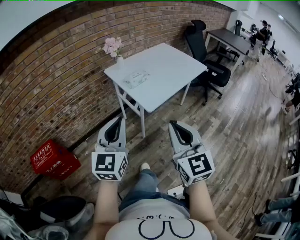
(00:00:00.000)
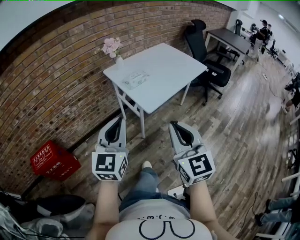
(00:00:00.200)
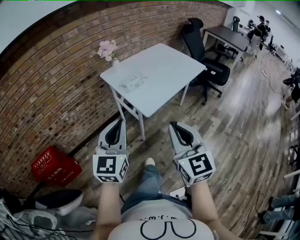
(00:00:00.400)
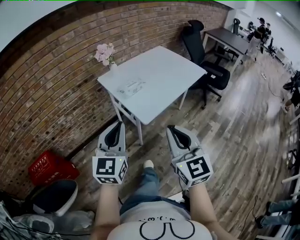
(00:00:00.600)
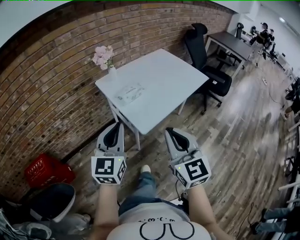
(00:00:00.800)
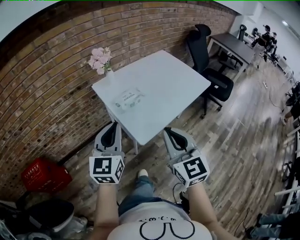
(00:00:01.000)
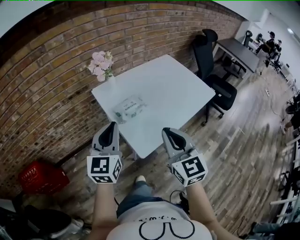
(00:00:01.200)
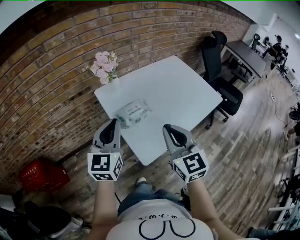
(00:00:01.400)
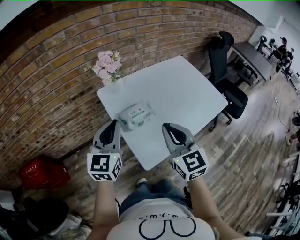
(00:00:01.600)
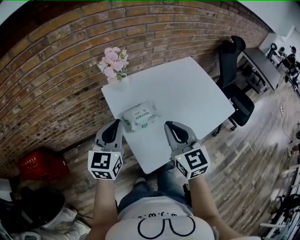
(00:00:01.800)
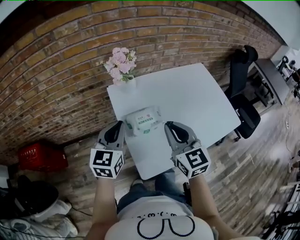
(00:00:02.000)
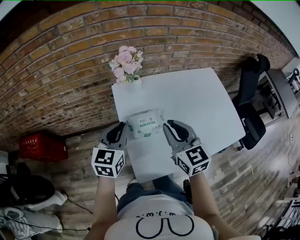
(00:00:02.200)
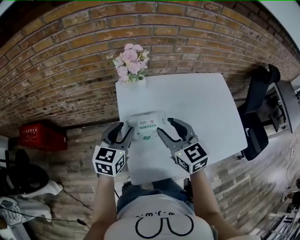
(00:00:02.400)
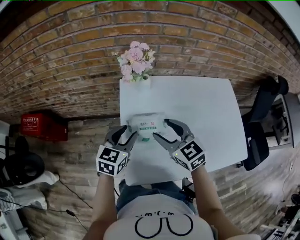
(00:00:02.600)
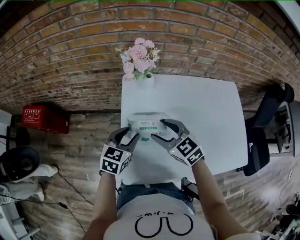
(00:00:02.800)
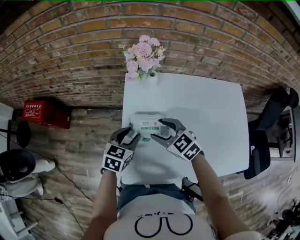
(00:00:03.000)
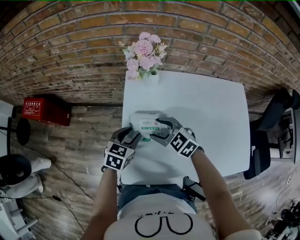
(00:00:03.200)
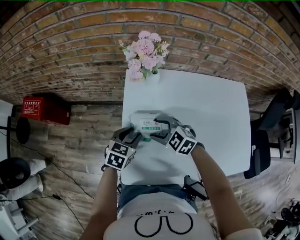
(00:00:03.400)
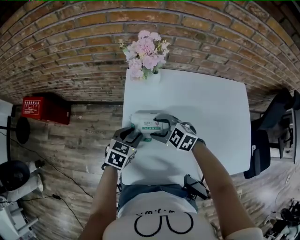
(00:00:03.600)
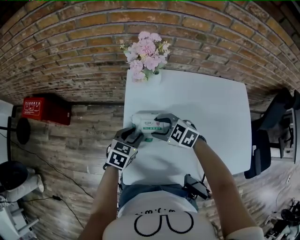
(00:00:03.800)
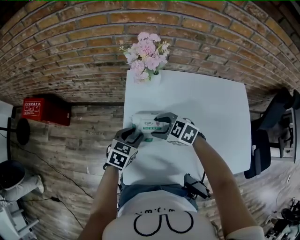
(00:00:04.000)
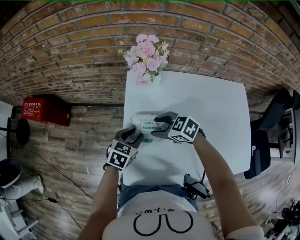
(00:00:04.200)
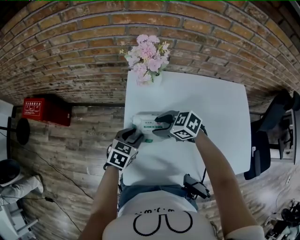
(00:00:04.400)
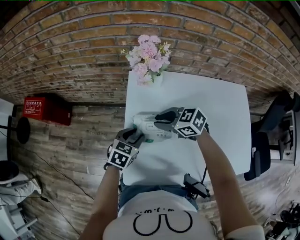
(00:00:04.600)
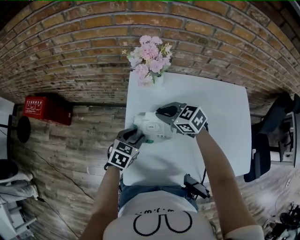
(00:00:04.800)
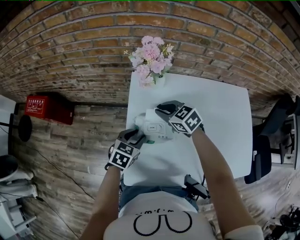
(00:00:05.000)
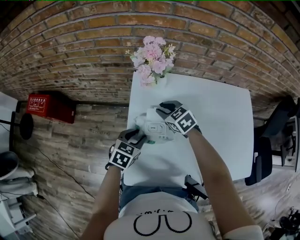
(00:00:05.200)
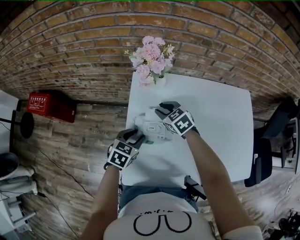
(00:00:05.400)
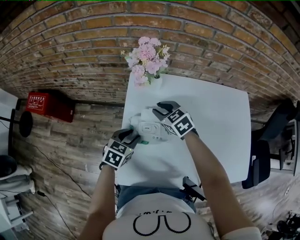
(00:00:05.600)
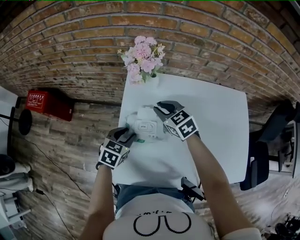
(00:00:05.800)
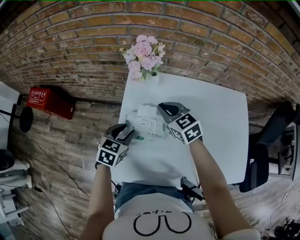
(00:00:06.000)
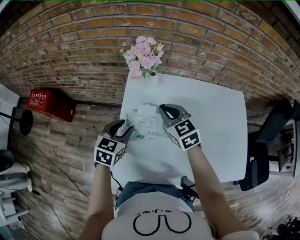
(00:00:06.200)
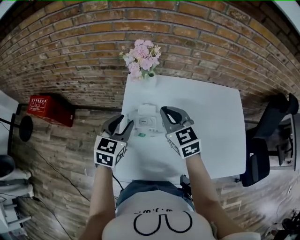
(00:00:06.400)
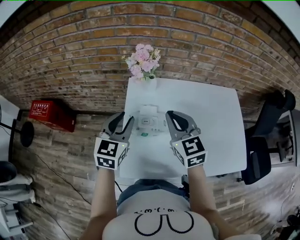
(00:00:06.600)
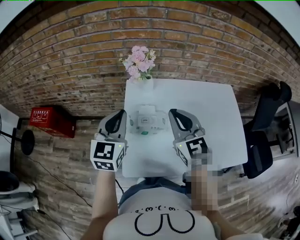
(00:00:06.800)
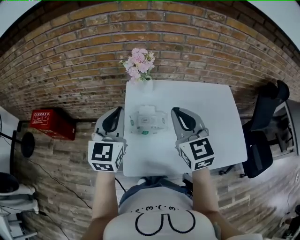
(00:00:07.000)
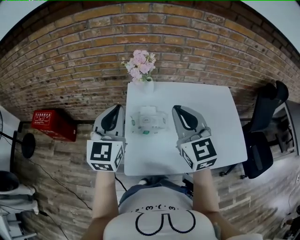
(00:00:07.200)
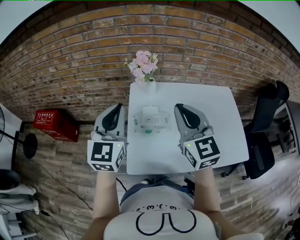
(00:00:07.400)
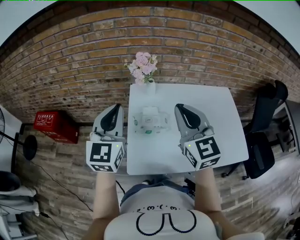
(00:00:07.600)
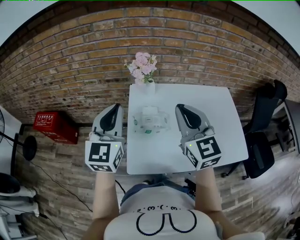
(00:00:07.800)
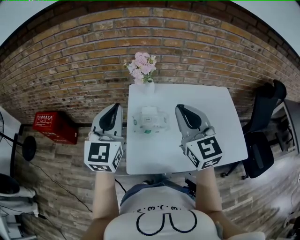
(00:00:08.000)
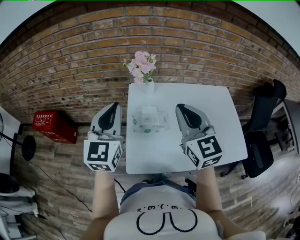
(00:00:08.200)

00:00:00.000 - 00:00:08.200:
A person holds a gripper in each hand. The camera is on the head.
00:00:00.000 - 00:00:01.600: Both grippers travel together forward, about 40 cm.
00:00:01.600 - 00:00:03.200: The two grippers go some 20 cm downward. The right gripper tips its fingers downward by approximately 30 degrees, and opens up, while the left gripper tips its fingers downward by approximately 40 degrees, and opens.
00:00:03.200 - 00:00:05.000: The right gripper changes place by roughly 10 cm, and closes up.
00:00:05.000 - 00:00:06.600: The left gripper shifts some 20 cm upward, and swivels approximately 30 degrees; the right gripper shifts some 20 cm upward and backward, and rotates some 40 degrees.
00:00:06.600 - 00:00:08.200: Both grippers move upward and backward, some 15 cm. The left gripper rotates roughly 20 degrees, and closes its fingers.

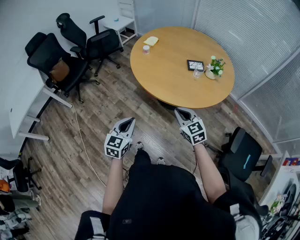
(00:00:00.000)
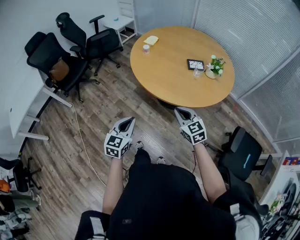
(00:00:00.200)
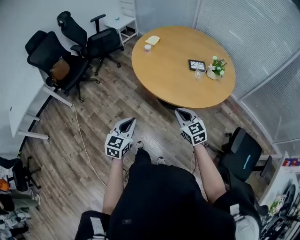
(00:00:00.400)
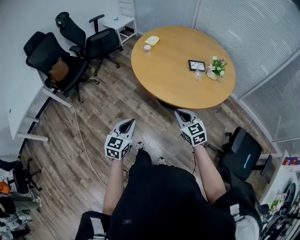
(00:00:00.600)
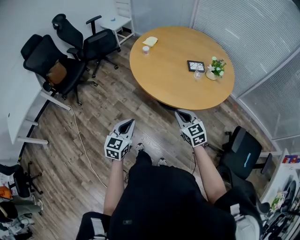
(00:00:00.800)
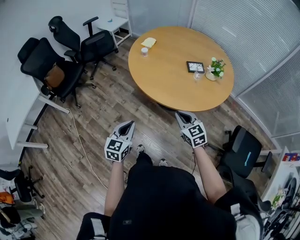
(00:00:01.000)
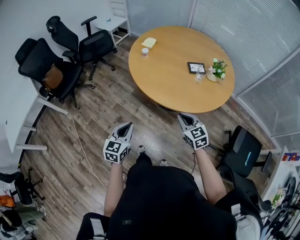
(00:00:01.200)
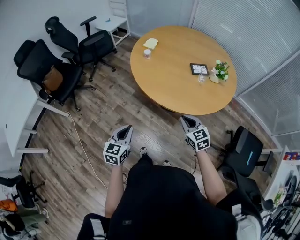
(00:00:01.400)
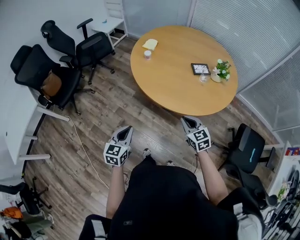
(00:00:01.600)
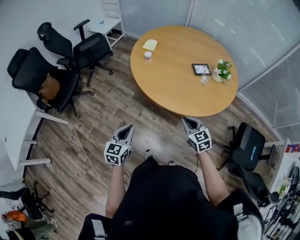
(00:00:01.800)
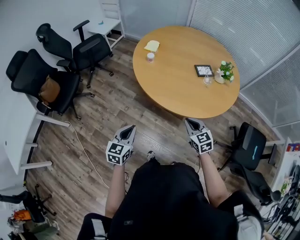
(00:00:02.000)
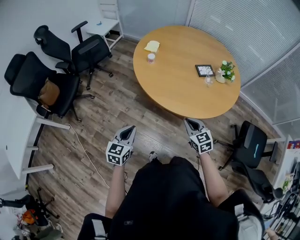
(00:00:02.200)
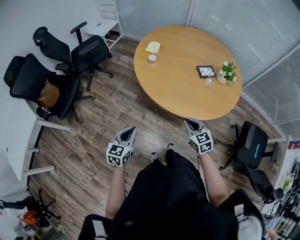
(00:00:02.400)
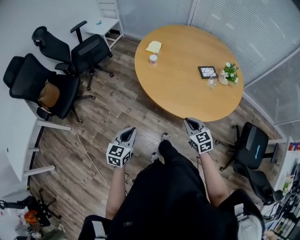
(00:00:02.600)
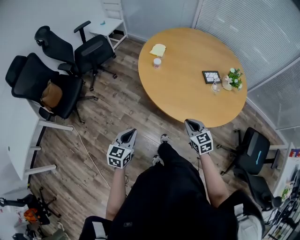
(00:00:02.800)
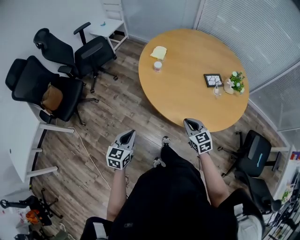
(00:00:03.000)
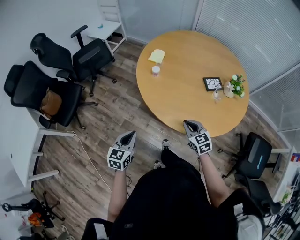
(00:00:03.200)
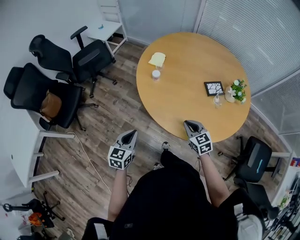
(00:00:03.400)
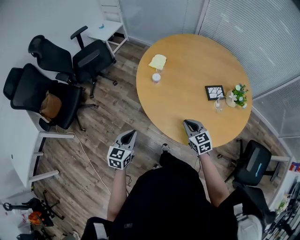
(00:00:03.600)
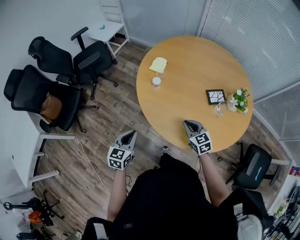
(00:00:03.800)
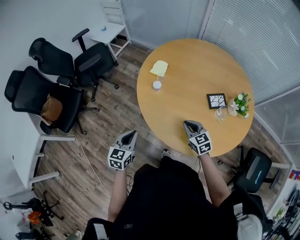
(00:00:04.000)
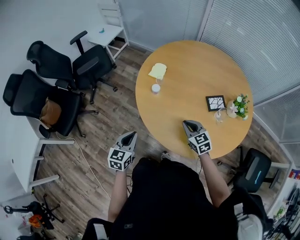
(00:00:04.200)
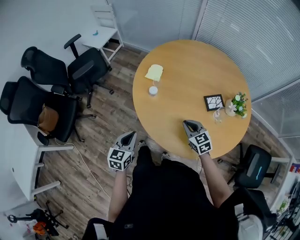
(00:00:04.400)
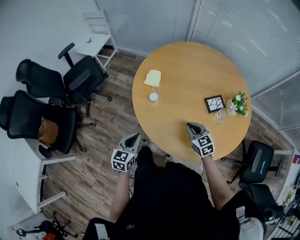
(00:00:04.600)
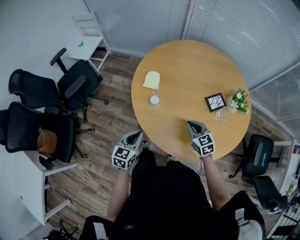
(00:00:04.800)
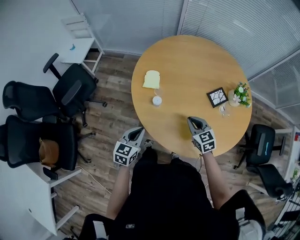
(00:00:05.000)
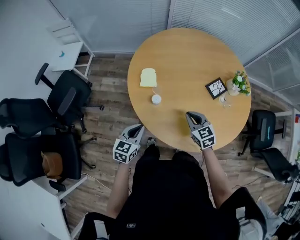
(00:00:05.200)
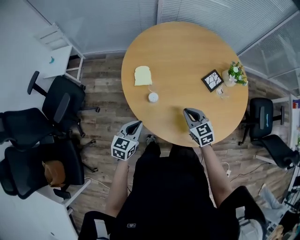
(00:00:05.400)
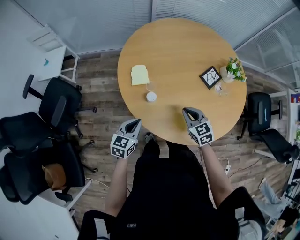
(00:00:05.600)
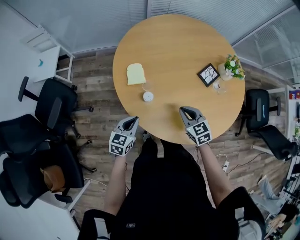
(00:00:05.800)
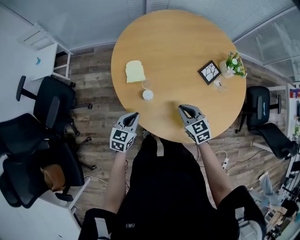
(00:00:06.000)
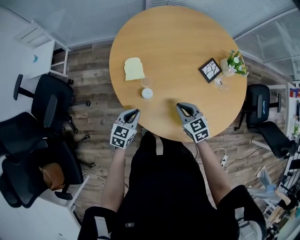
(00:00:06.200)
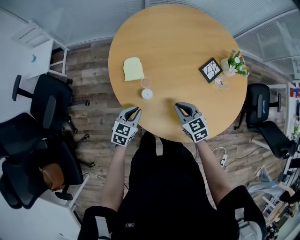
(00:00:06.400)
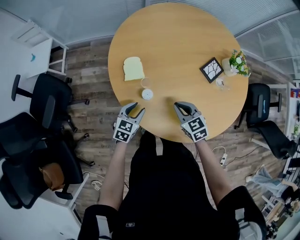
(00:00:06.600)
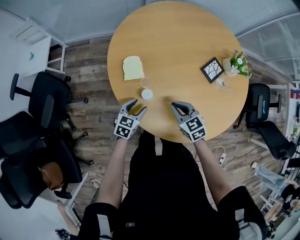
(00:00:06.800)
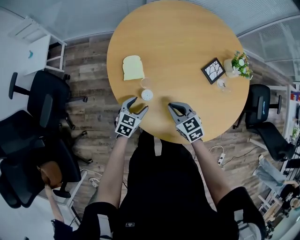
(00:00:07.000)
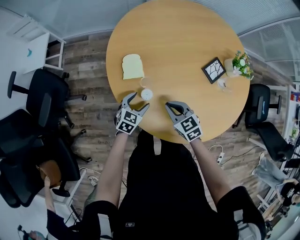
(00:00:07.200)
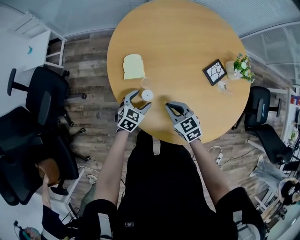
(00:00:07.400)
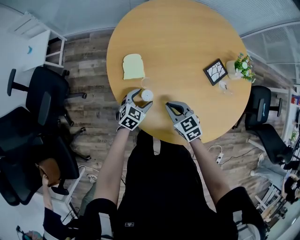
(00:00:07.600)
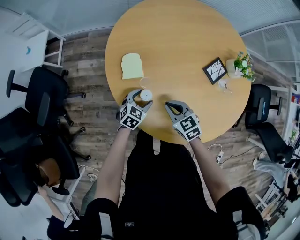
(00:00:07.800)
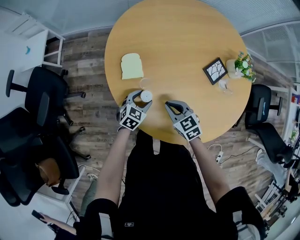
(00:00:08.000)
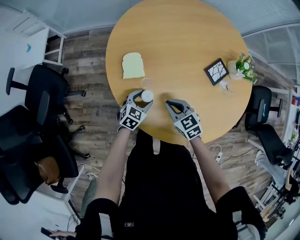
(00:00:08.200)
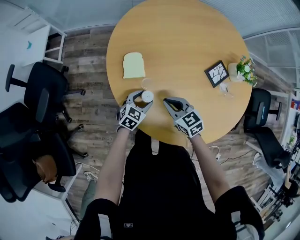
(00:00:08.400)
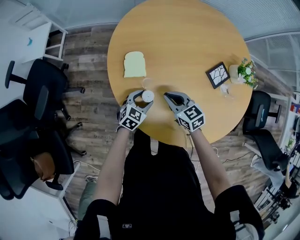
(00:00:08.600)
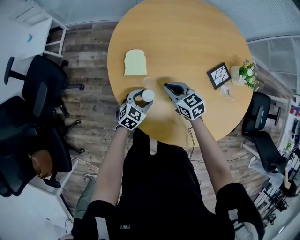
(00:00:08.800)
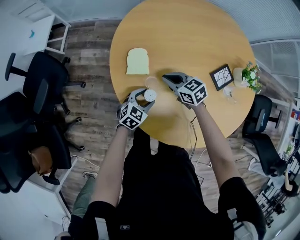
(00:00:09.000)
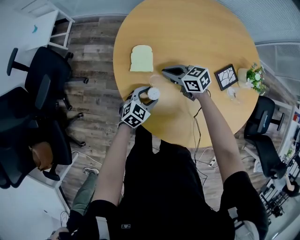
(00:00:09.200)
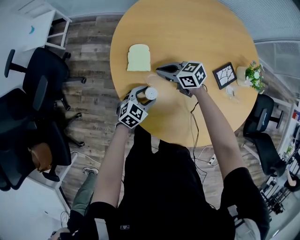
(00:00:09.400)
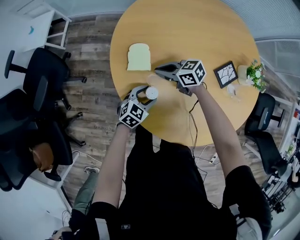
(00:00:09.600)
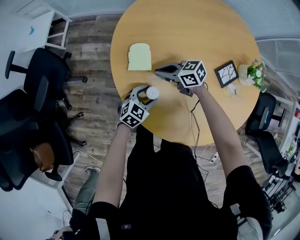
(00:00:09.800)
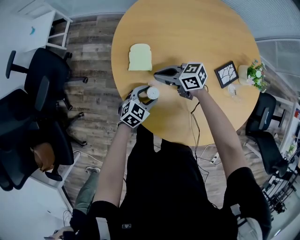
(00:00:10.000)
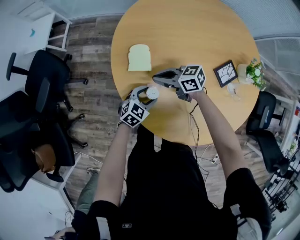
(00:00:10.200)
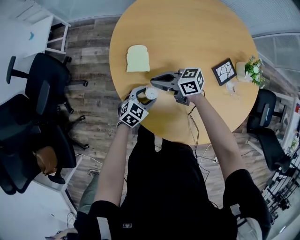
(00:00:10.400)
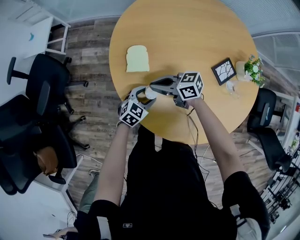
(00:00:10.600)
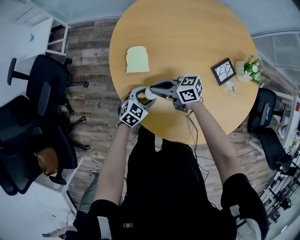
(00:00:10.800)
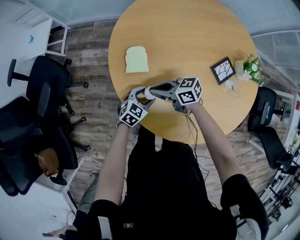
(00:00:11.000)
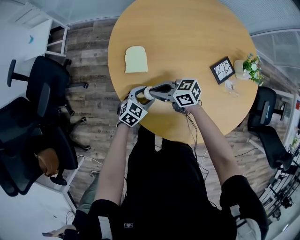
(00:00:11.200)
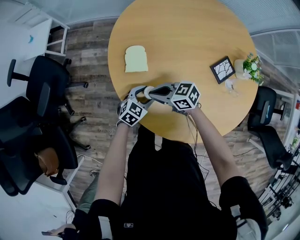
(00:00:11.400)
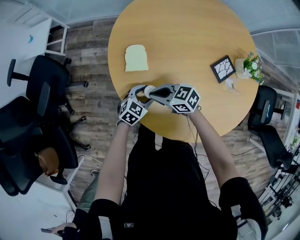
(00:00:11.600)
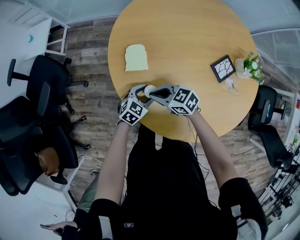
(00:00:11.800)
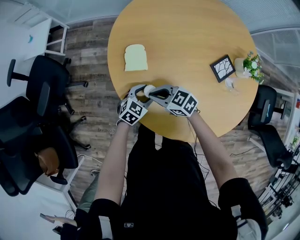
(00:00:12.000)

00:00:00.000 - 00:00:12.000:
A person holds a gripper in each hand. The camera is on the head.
00:00:00.000 - 00:00:01.600: The left gripper goes roughly 15 cm to the left and forward. Meanwhile the right gripper is displaced forward and to the left by some 10 cm.
00:00:01.600 - 00:00:03.000: The two grippers go about 15 cm forward and to the left.
00:00:03.000 - 00:00:04.400: Both grippers move forward, roughly 20 cm.
00:00:04.400 - 00:00:06.000: The right gripper moves approximately 10 cm, and changes its angle by roughly 30 degrees, while the left gripper ends up about 25 cm from where it was, and turns by some 40 degrees.
00:00:06.000 - 00:00:07.600: The right gripper shifts about 5 cm to the left; the left gripper is displaced forward, downward and to the right by roughly 15 cm, turns by roughly 20 degrees, and opens.
00:00:07.600 - 00:00:09.000: The right gripper is displaced forward by roughly 10 cm.
00:00:09.000 - 00:00:10.400: The right gripper moves roughly 5 cm, and turns by approximately 30 degrees.
00:00:10.400 - 00:00:12.000: The right gripper shifts by about 5 cm, and turns by about 20 degrees.

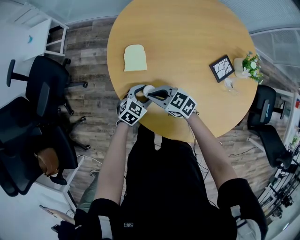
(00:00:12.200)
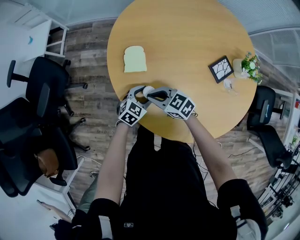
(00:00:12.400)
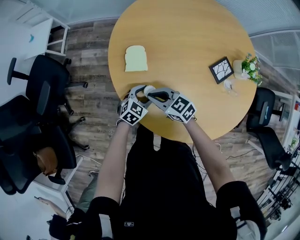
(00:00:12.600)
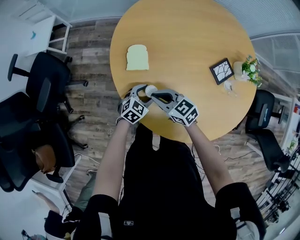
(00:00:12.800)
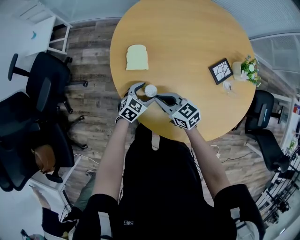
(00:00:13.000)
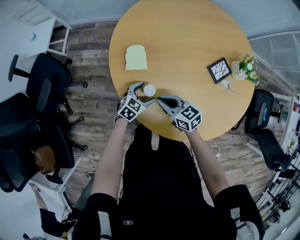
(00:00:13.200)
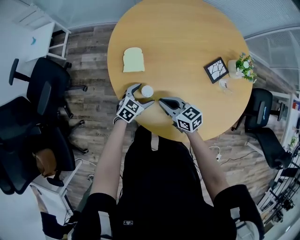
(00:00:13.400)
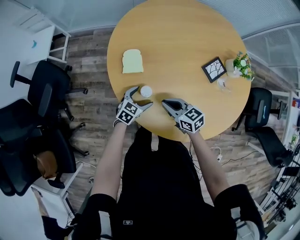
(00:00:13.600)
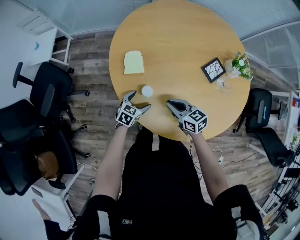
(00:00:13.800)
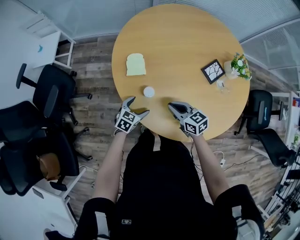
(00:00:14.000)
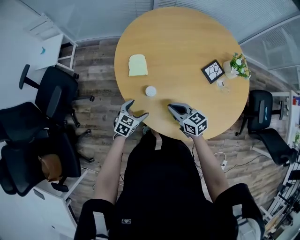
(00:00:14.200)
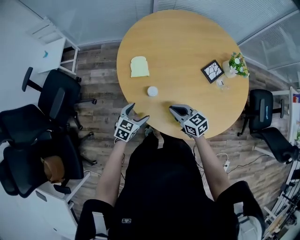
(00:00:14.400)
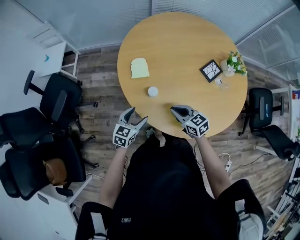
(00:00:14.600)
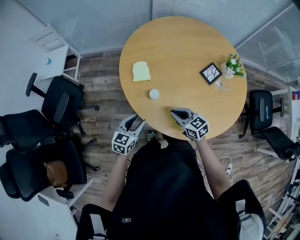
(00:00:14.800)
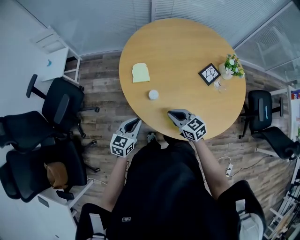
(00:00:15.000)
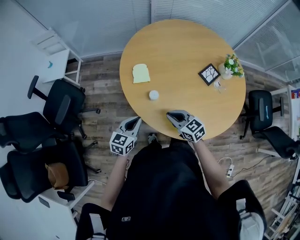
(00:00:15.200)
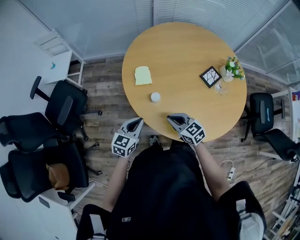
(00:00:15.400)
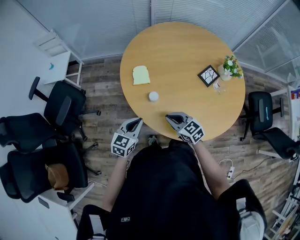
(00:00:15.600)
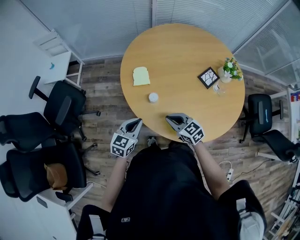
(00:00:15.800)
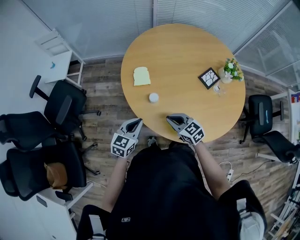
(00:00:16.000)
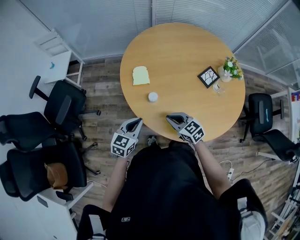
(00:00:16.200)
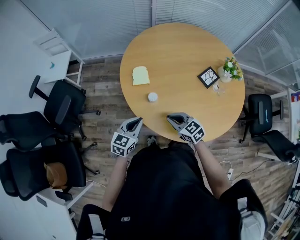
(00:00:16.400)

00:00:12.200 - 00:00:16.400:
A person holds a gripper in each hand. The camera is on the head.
00:00:12.200 - 00:00:13.600: The right gripper moves about 10 cm, and rotates roughly 30 degrees. Meanwhile the left gripper opens up.
00:00:13.600 - 00:00:15.000: The left gripper is displaced upward, backward and to the left by some 20 cm, rotates roughly 20 degrees, and closes its fingers; the right gripper shifts some 10 cm backward and upward.
00:00:15.000 - 00:00:16.400: There are only small adjustments of the grippers.
